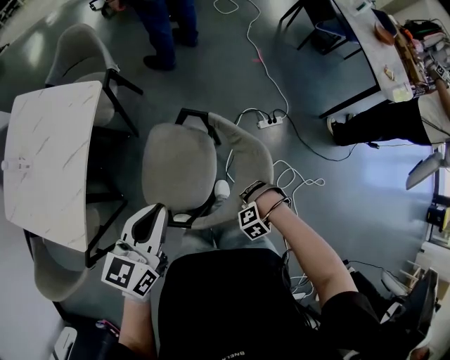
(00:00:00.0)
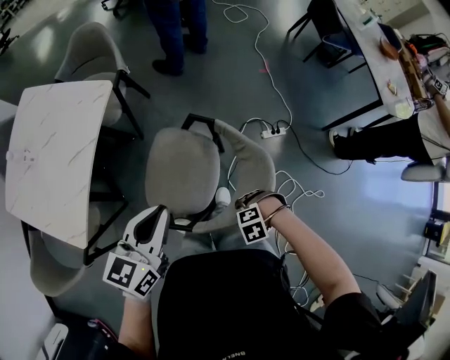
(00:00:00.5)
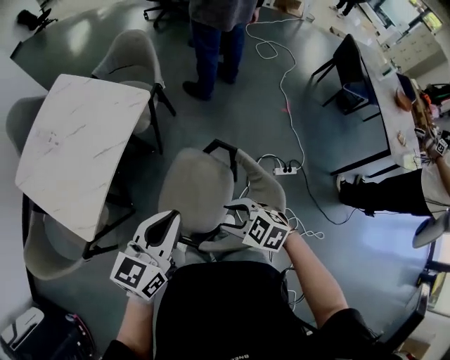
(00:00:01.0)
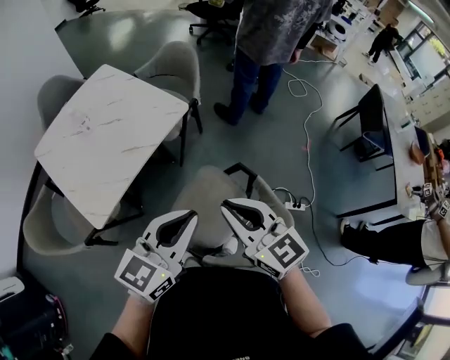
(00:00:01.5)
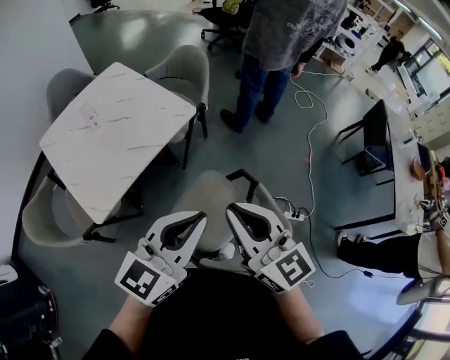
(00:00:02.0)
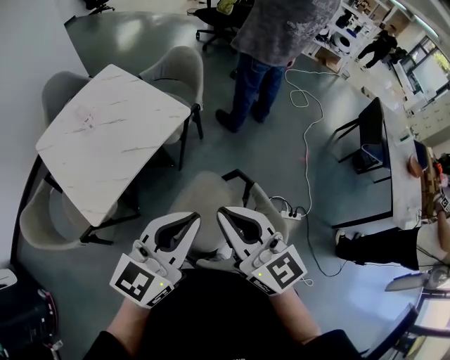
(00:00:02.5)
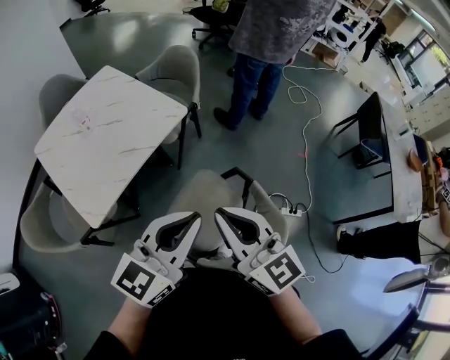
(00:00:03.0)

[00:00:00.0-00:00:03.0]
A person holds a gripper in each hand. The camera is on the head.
00:00:00.0 to 00:00:01.5: The left gripper goes about 10 cm upward, and changes its angle by roughly 20 degrees, while the right gripper shifts some 40 cm upward, tilts its fingers some 70 degrees upward, and closes its fingers.
00:00:01.5 to 00:00:03.0: The right gripper travels upward by about 5 cm.

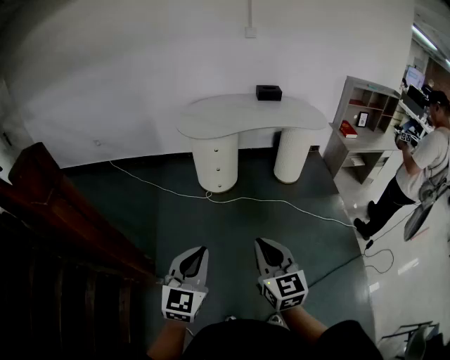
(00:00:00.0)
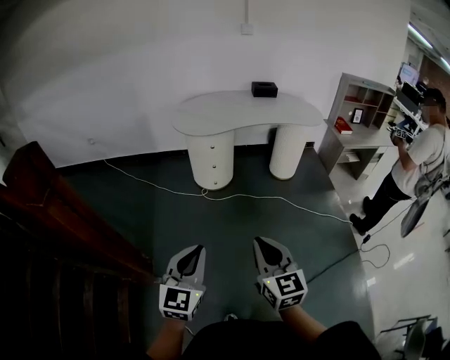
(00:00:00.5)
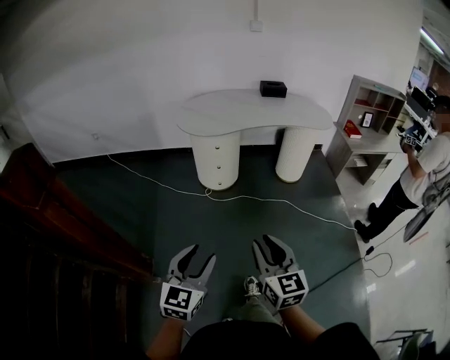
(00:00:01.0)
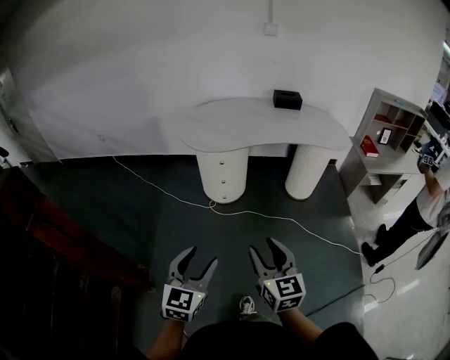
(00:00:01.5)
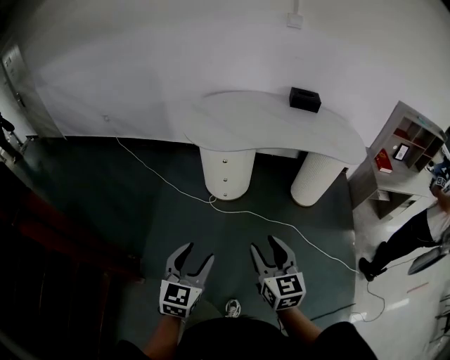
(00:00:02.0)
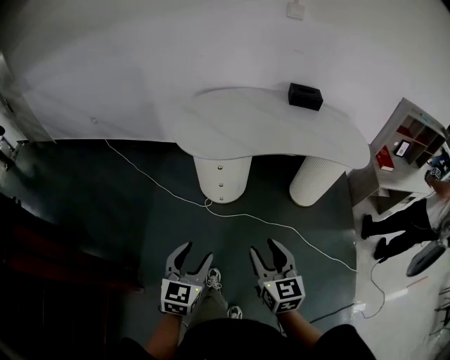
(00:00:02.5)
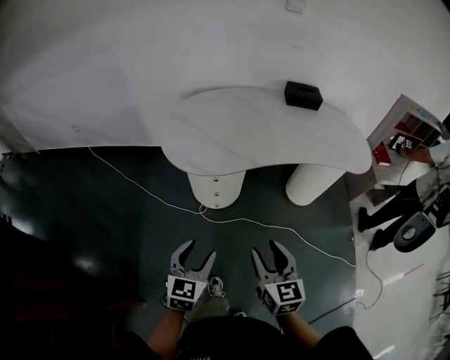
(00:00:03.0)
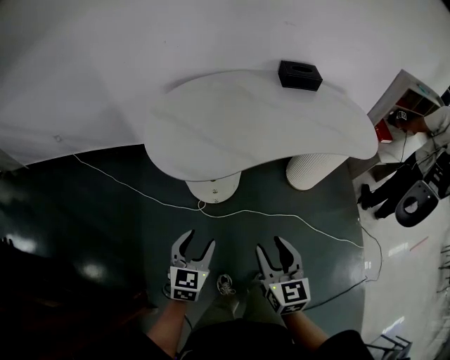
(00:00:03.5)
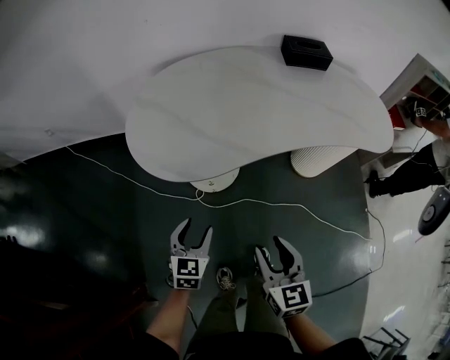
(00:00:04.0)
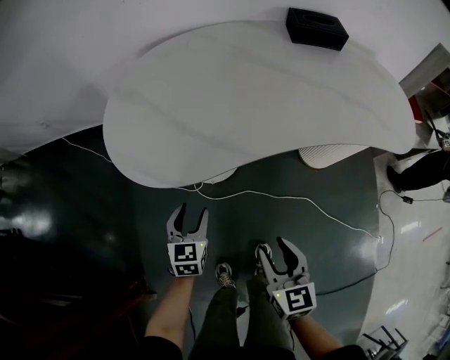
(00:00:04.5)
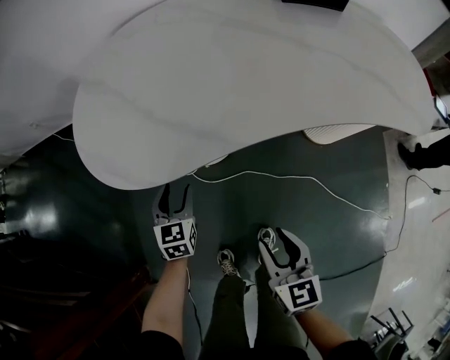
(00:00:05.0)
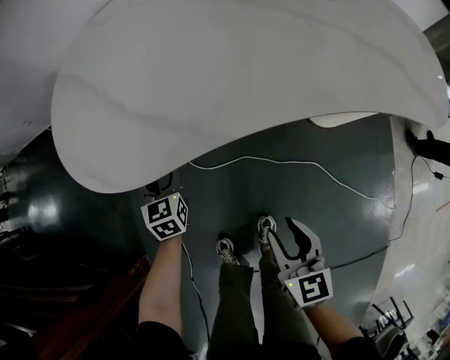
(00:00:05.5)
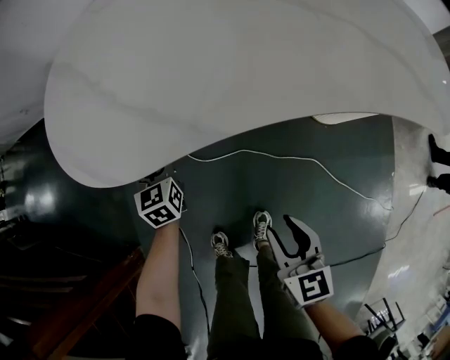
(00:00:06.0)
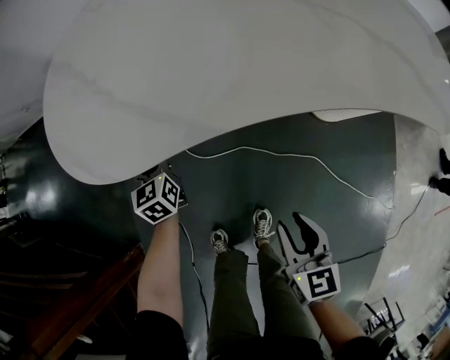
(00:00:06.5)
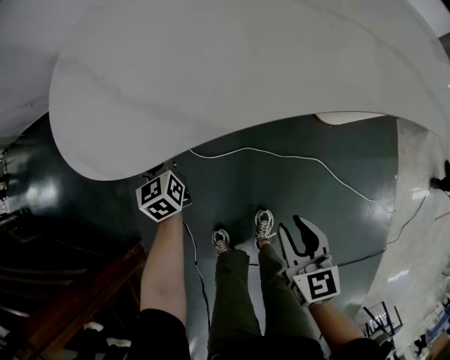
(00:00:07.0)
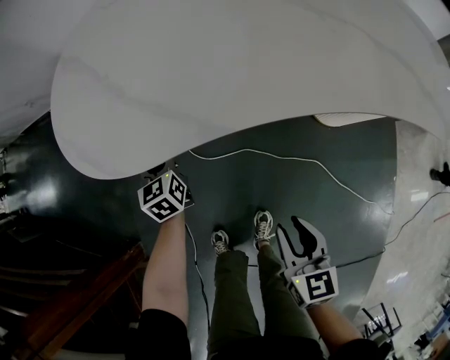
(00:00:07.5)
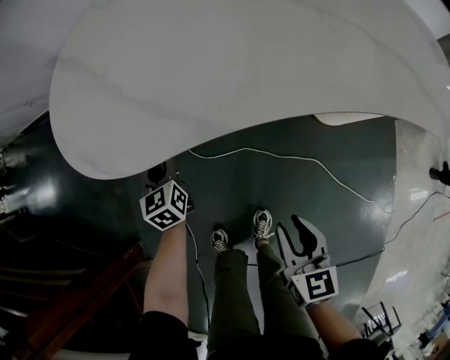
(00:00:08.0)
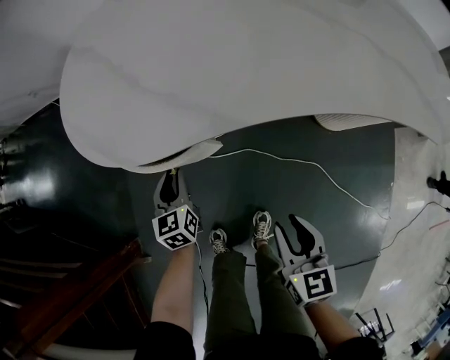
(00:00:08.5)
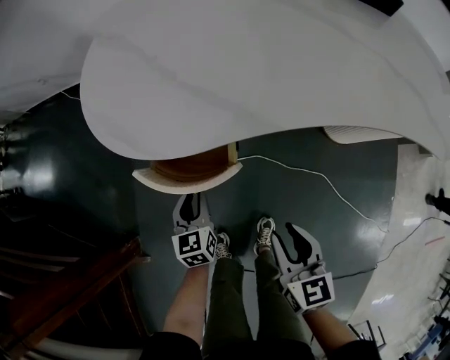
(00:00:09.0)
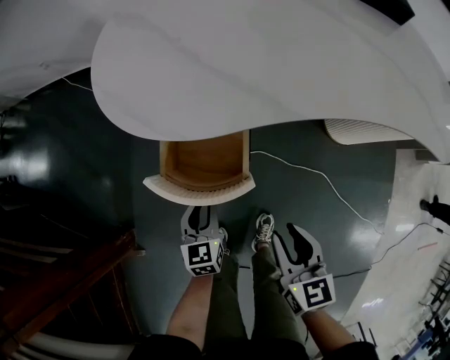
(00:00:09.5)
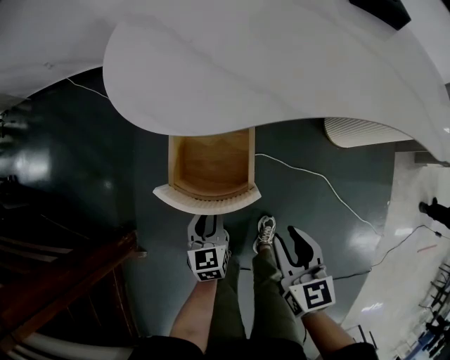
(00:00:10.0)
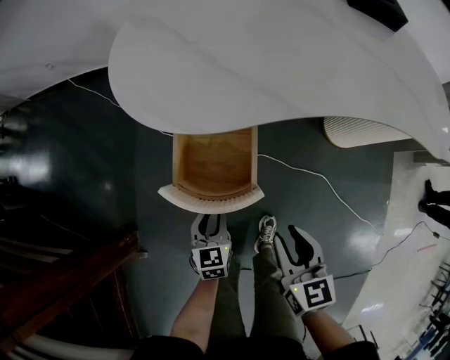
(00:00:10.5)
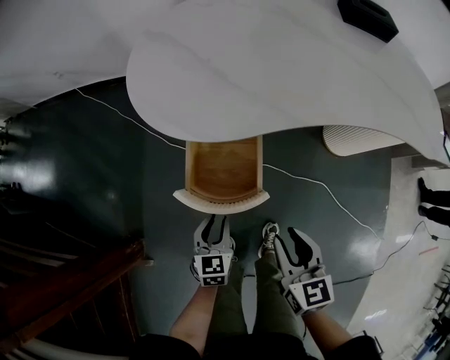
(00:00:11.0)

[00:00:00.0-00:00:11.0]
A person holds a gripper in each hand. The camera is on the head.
00:00:00.0 to 00:00:02.0: The two grippers go roughly 30 cm forward. The left gripper opens up. Meanwhile the right gripper opens its fingers.
00:00:02.0 to 00:00:03.5: The grippers both shift forward by roughly 30 cm.
00:00:03.5 to 00:00:05.5: The right gripper moves downward, to the right and forward, roughly 30 cm; the left gripper heads forward and downward, covering some 35 cm, and swivels roughly 30 degrees.
00:00:05.5 to 00:00:07.5: The left gripper closes its fingers.
00:00:07.5 to 00:00:09.0: The right gripper travels to the left by roughly 5 cm; the left gripper shifts some 15 cm backward.
00:00:09.0 to 00:00:11.0: The left gripper is displaced backward by approximately 10 cm. The right gripper heads to the left and upward, covering approximately 10 cm.

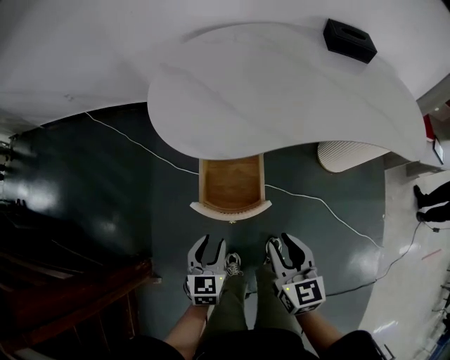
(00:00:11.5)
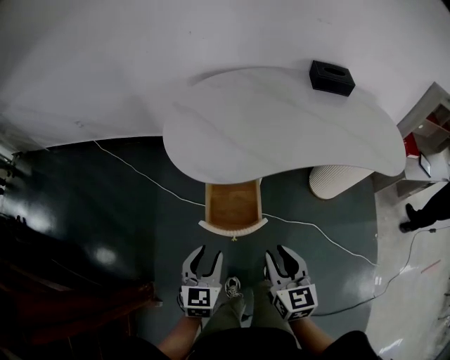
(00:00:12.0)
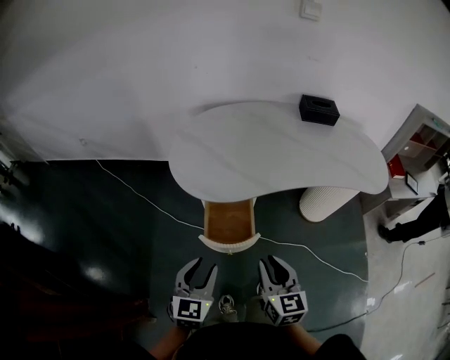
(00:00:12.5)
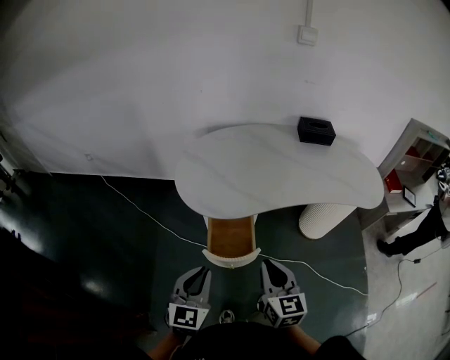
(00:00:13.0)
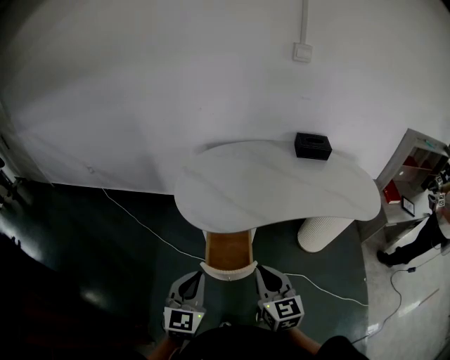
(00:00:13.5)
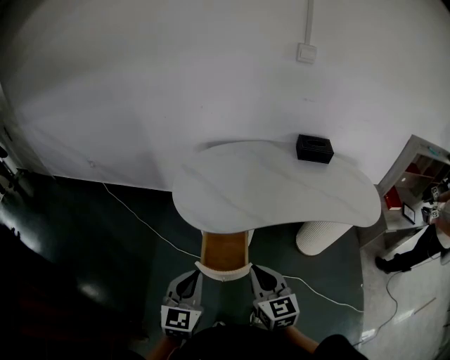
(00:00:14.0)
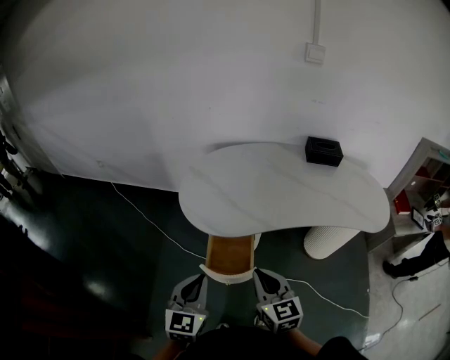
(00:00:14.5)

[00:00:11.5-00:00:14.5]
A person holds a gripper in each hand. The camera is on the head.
00:00:11.5 to 00:00:13.0: The right gripper is displaced upward by about 15 cm, and closes up. Meanwhile the left gripper is displaced upward by about 25 cm, rotates approximately 20 degrees, and closes up.
00:00:13.0 to 00:00:14.5: There are only small adjustments of the grippers.

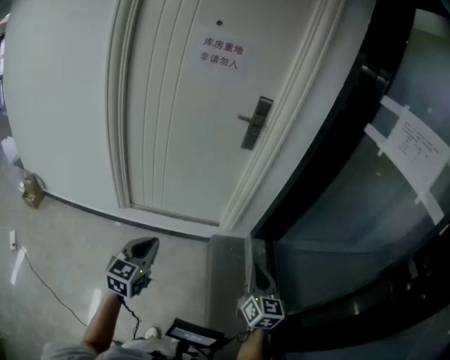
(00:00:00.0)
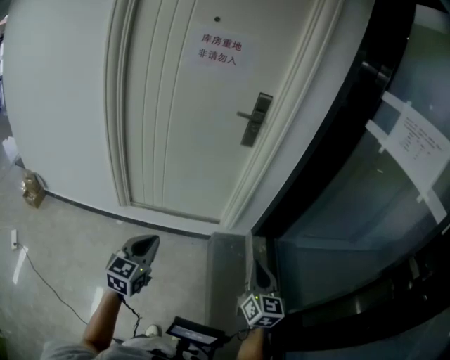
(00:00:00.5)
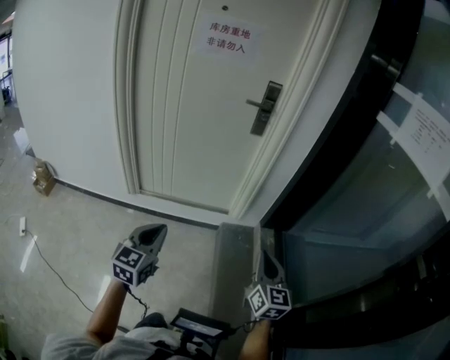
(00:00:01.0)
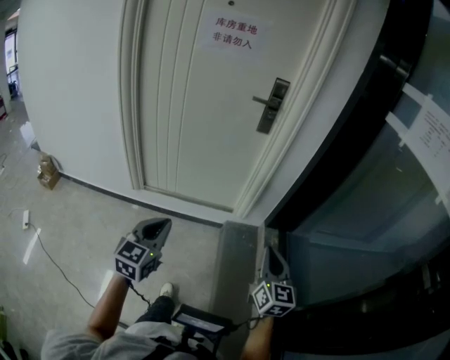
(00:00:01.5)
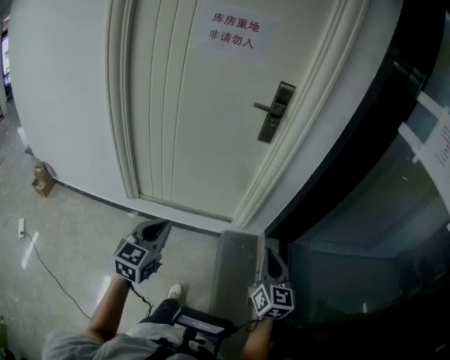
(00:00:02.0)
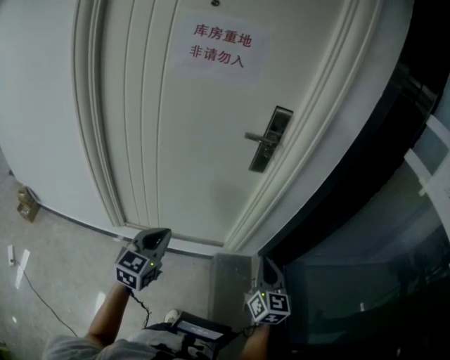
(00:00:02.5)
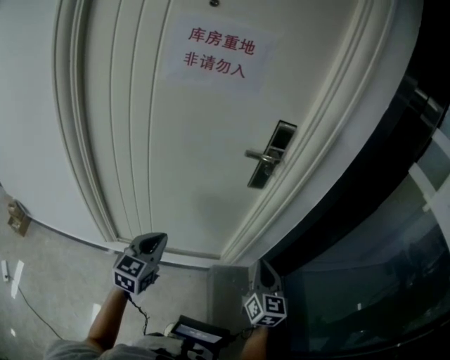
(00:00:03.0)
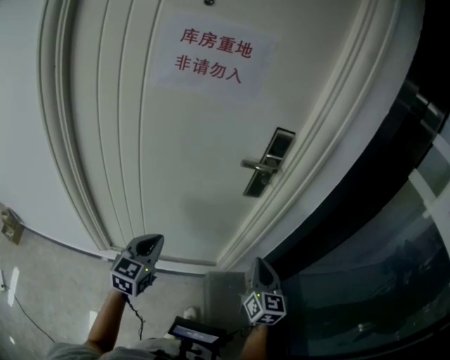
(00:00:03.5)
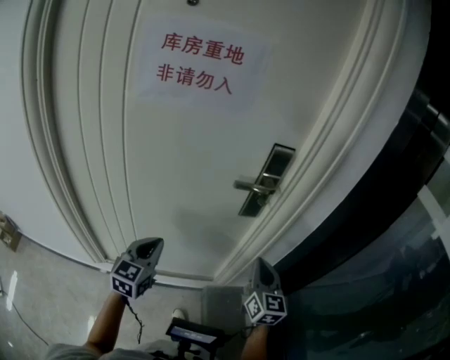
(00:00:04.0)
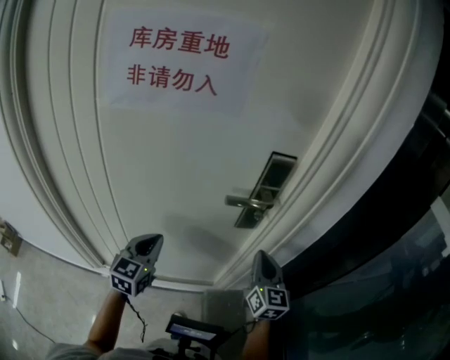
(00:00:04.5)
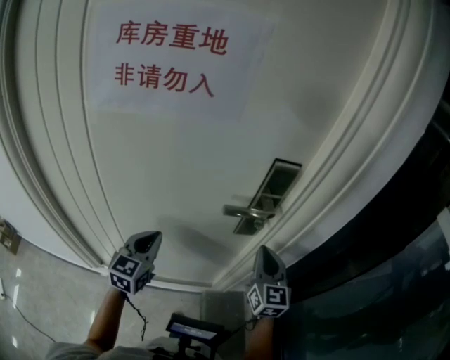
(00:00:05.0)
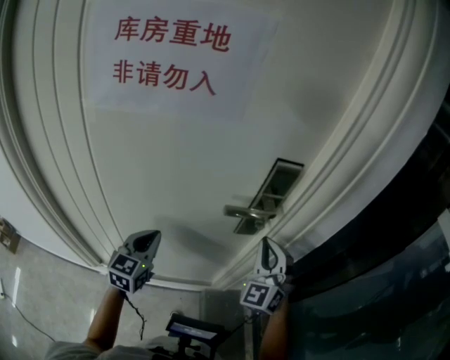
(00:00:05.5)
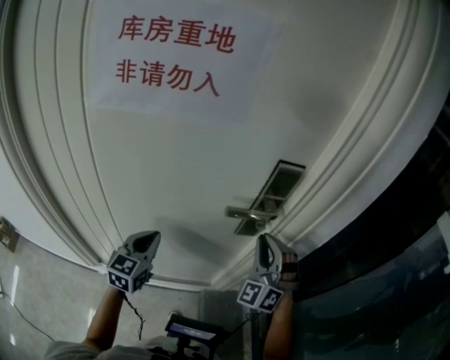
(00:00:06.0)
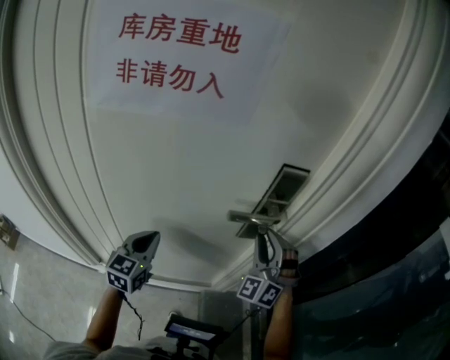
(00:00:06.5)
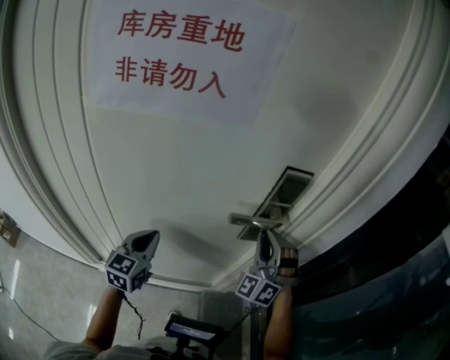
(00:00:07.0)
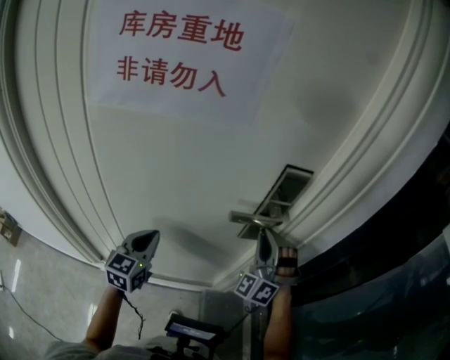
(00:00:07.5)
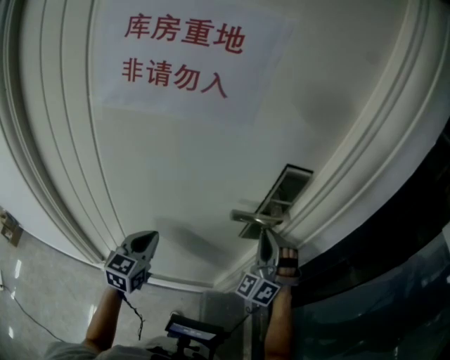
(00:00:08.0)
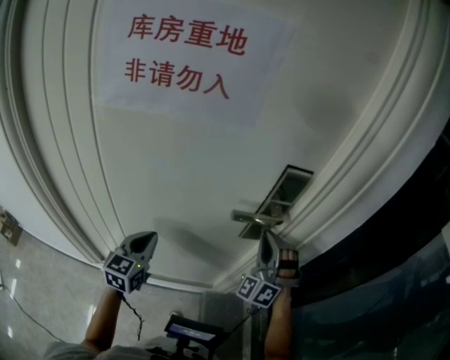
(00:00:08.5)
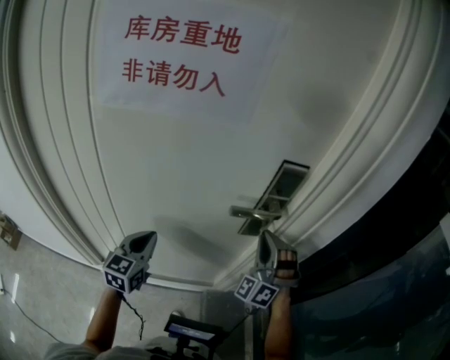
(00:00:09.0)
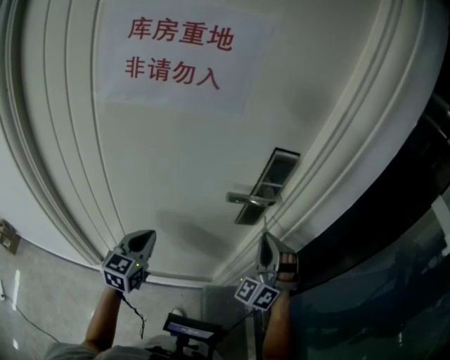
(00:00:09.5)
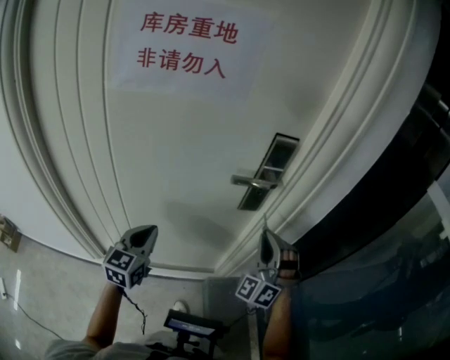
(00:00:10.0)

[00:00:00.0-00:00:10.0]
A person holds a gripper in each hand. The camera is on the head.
00:00:00.0 to 00:00:02.0: The two grippers go roughly 10 cm forward.
00:00:02.0 to 00:00:04.0: Both grippers move forward, roughly 40 cm.
00:00:04.0 to 00:00:06.0: The right gripper travels forward and upward by about 15 cm, and rotates around the line of its fingers by some 70 degrees, counterclockwise from behind, while the left gripper heads forward, covering roughly 10 cm.
00:00:06.0 to 00:00:08.0: The grippers stay close to where they were, moving slightly.
00:00:08.0 to 00:00:10.0: The right gripper travels backward by some 10 cm. Meanwhile the left gripper shifts approximately 10 cm backward.
